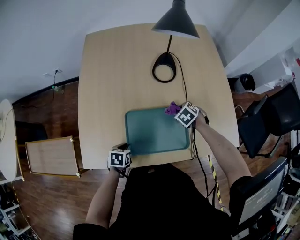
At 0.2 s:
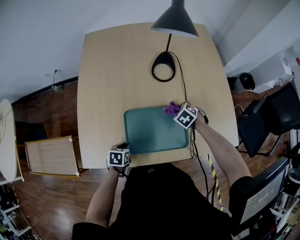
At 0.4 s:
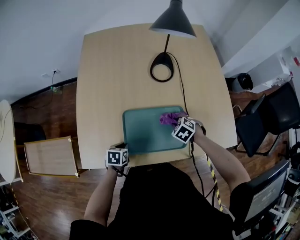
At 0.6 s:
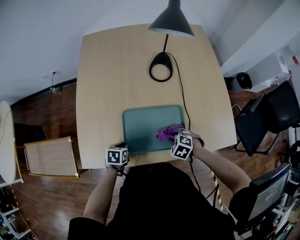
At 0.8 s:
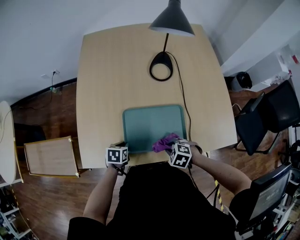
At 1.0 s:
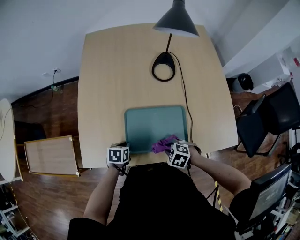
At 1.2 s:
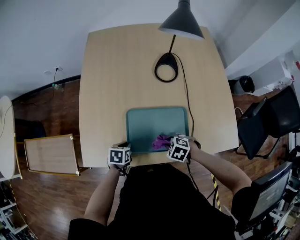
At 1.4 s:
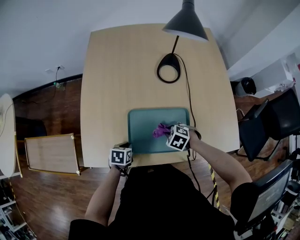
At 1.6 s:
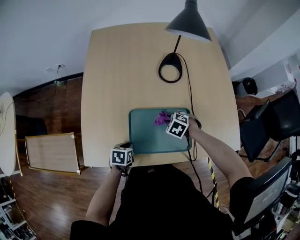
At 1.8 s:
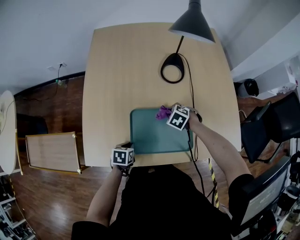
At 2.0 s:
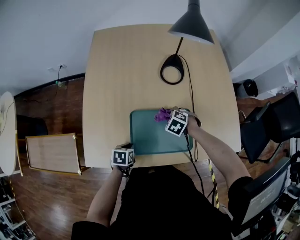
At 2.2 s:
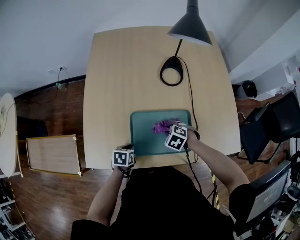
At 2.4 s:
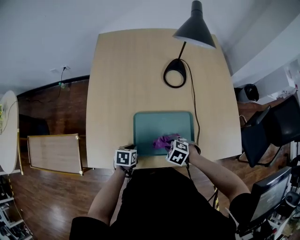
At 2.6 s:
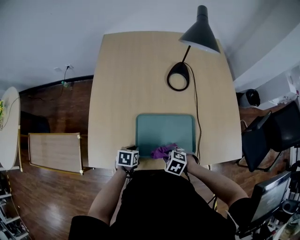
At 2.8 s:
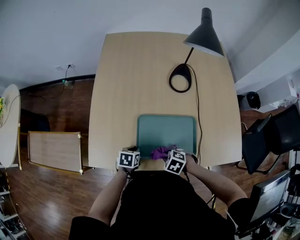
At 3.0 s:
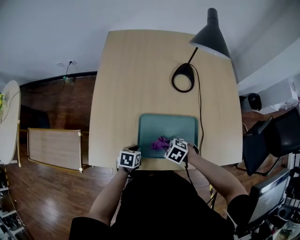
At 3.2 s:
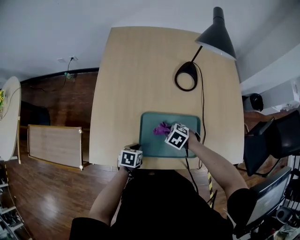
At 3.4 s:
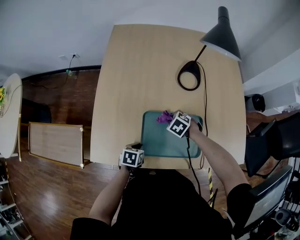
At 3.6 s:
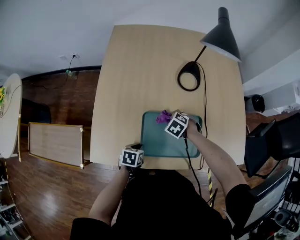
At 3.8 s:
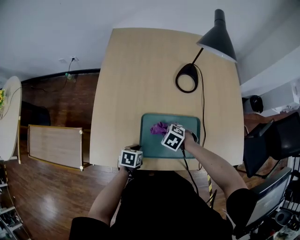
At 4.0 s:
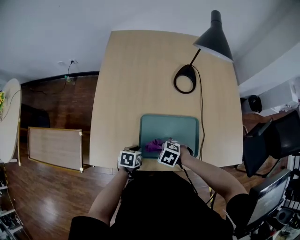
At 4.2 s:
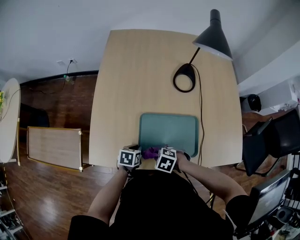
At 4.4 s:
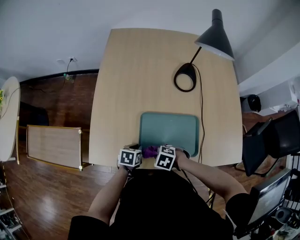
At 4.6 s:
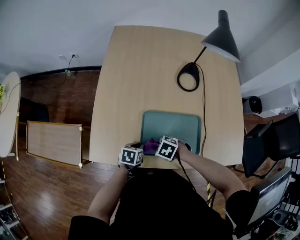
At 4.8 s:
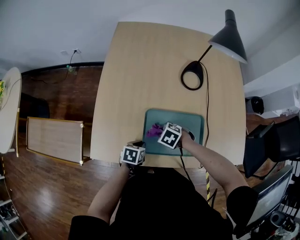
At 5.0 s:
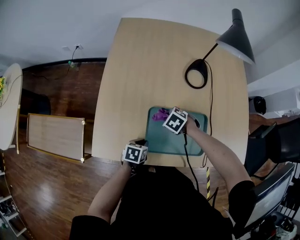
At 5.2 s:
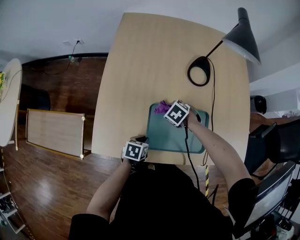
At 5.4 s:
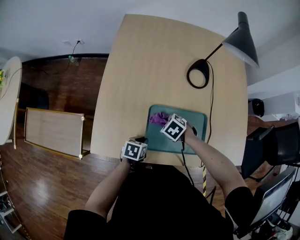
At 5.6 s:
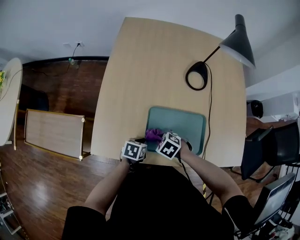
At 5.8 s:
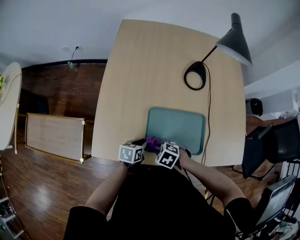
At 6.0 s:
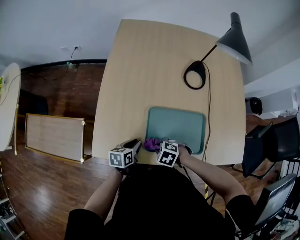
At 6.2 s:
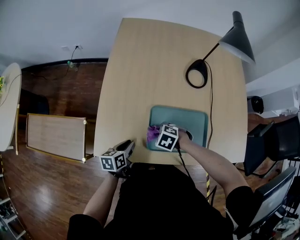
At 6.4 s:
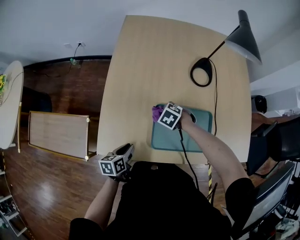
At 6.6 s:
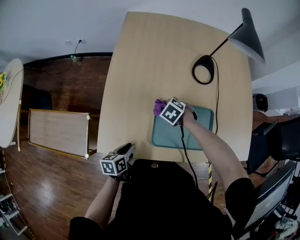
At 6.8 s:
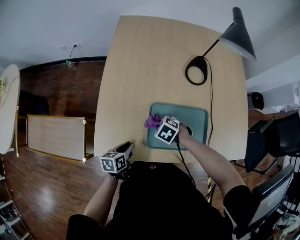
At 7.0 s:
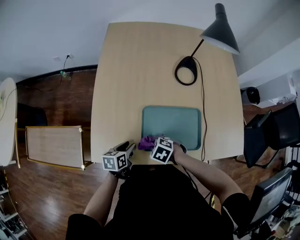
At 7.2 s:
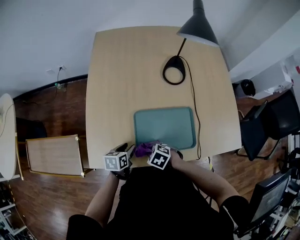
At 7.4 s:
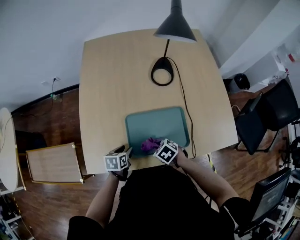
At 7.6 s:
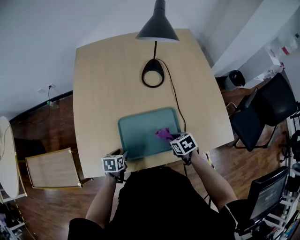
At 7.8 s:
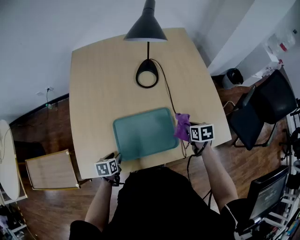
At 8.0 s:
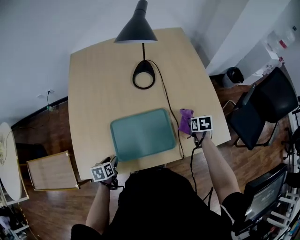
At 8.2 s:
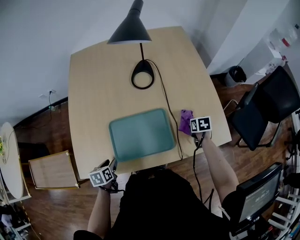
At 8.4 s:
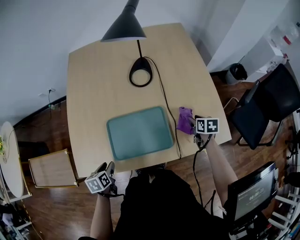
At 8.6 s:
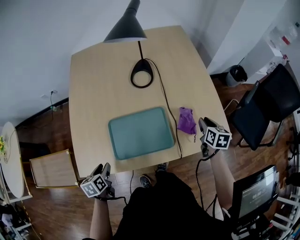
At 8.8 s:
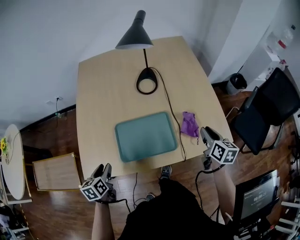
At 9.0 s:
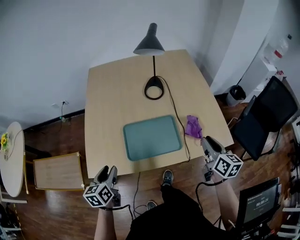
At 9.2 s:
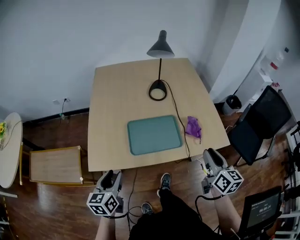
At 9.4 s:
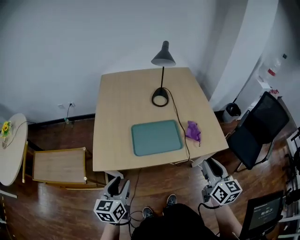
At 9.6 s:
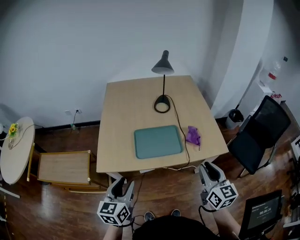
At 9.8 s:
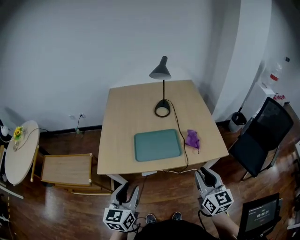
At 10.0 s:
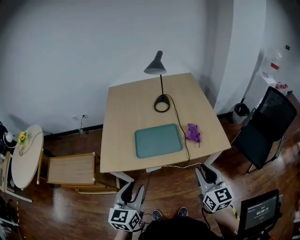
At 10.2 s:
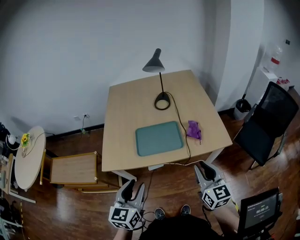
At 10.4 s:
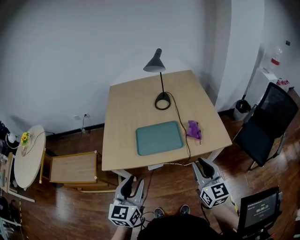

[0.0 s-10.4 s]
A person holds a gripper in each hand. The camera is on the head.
0.0 to 1.4 s: The right gripper changes its angle by about 20 degrees.
4.4 to 6.0 s: The left gripper moves some 5 cm.
6.0 to 7.4 s: The left gripper opens up. Meanwhile the right gripper rotates some 30 degrees.
7.4 to 9.0 s: The left gripper goes some 20 cm upward and backward, and rotates approximately 30 degrees. Meanwhile the right gripper travels to the right and upward by some 35 cm, and tilts its fingers about 50 degrees upward.
9.0 to 10.4 s: The left gripper is displaced upward, backward and to the right by approximately 25 cm, and changes its angle by some 30 degrees. Meanwhile the right gripper shifts approximately 20 cm backward and upward, and turns by approximately 30 degrees.

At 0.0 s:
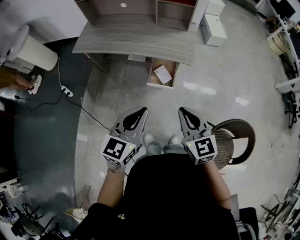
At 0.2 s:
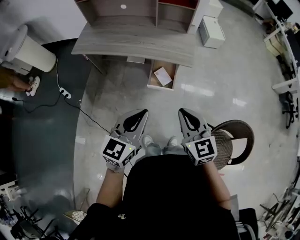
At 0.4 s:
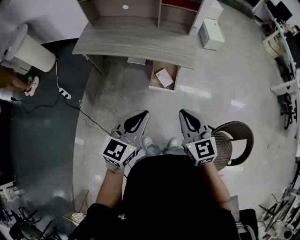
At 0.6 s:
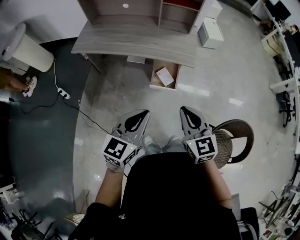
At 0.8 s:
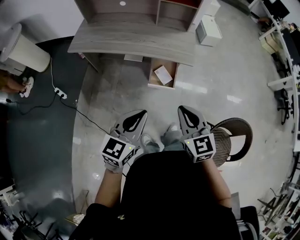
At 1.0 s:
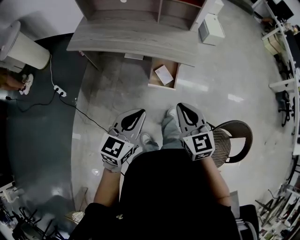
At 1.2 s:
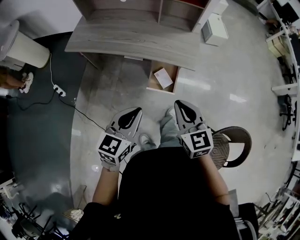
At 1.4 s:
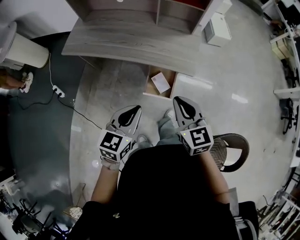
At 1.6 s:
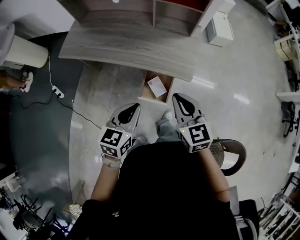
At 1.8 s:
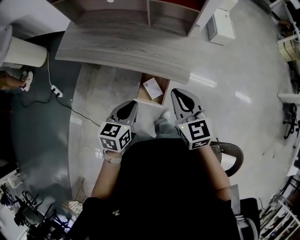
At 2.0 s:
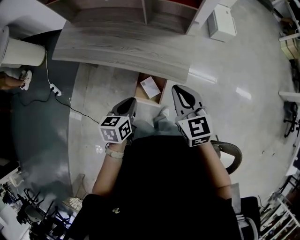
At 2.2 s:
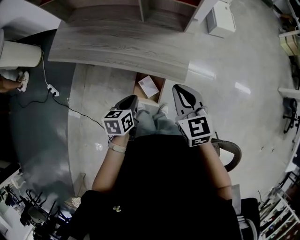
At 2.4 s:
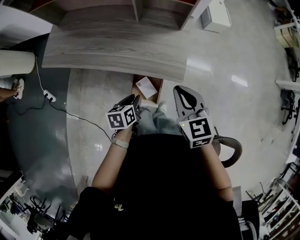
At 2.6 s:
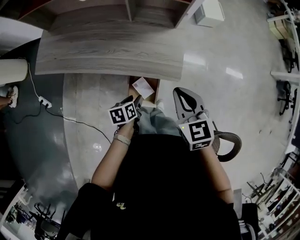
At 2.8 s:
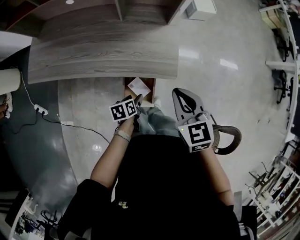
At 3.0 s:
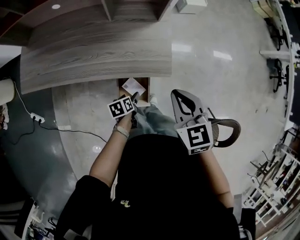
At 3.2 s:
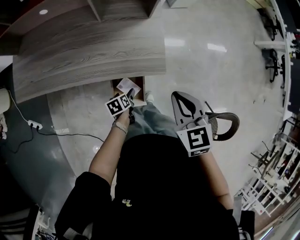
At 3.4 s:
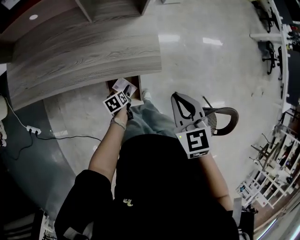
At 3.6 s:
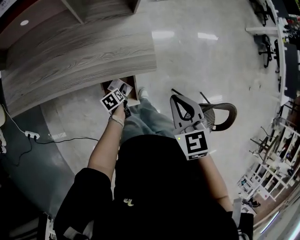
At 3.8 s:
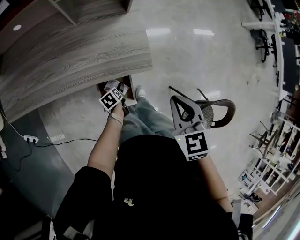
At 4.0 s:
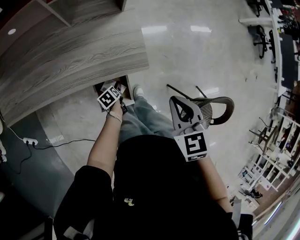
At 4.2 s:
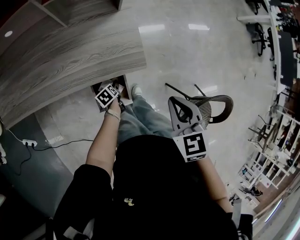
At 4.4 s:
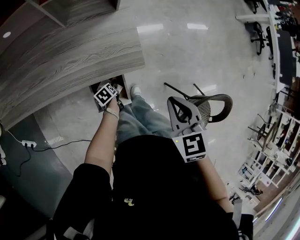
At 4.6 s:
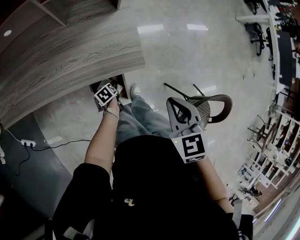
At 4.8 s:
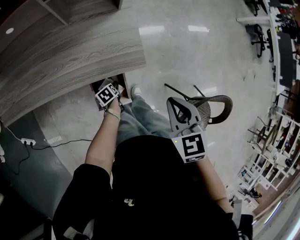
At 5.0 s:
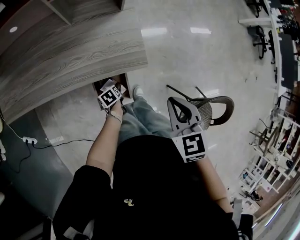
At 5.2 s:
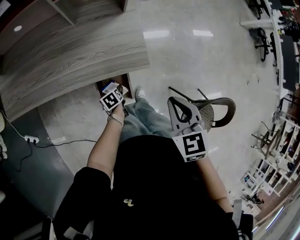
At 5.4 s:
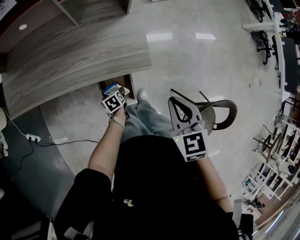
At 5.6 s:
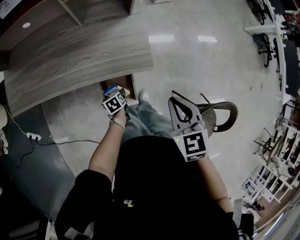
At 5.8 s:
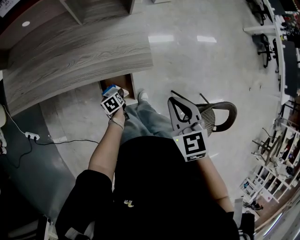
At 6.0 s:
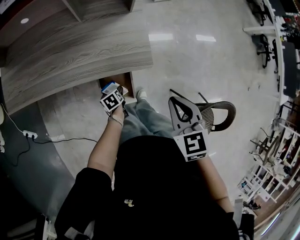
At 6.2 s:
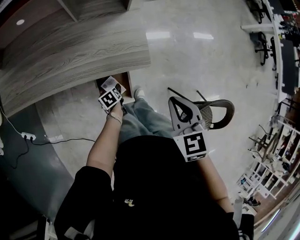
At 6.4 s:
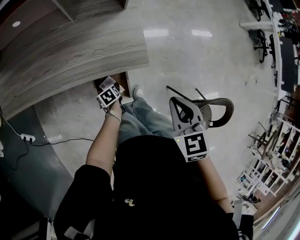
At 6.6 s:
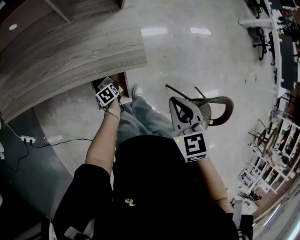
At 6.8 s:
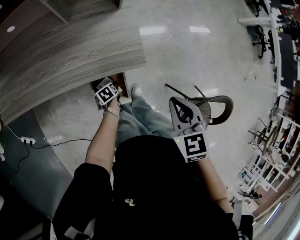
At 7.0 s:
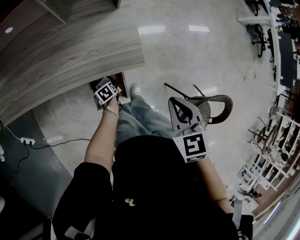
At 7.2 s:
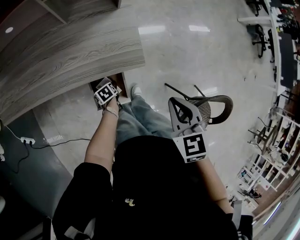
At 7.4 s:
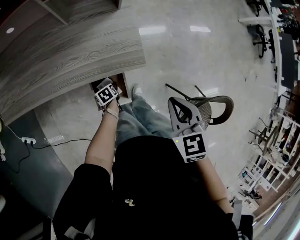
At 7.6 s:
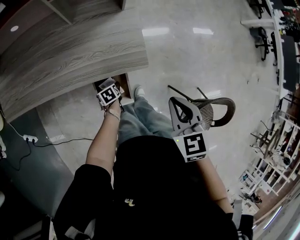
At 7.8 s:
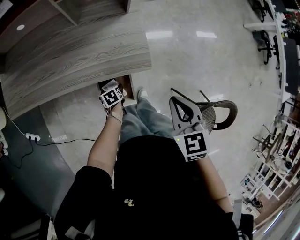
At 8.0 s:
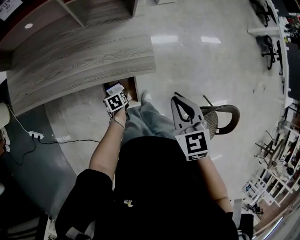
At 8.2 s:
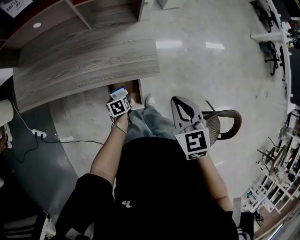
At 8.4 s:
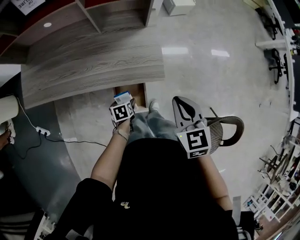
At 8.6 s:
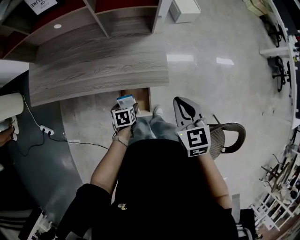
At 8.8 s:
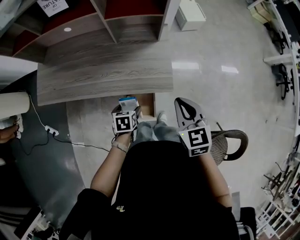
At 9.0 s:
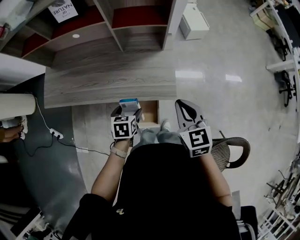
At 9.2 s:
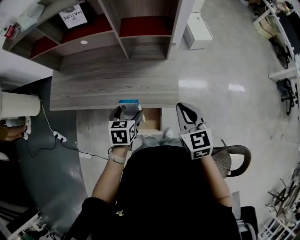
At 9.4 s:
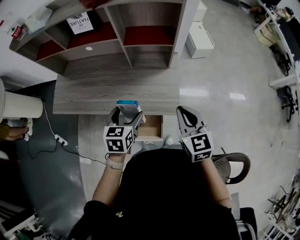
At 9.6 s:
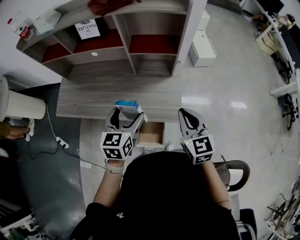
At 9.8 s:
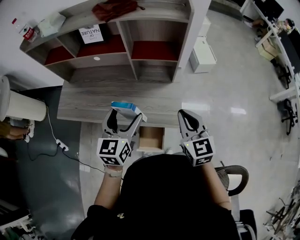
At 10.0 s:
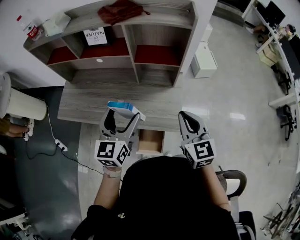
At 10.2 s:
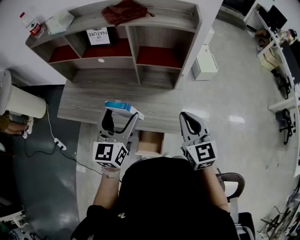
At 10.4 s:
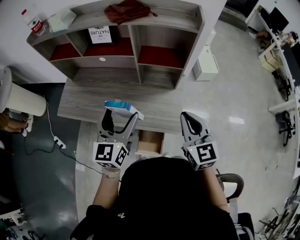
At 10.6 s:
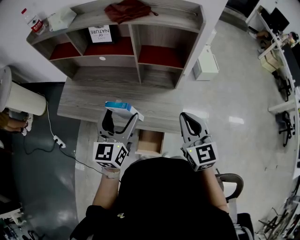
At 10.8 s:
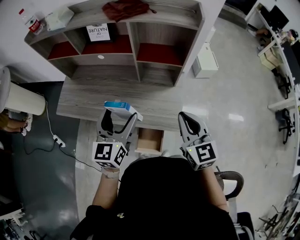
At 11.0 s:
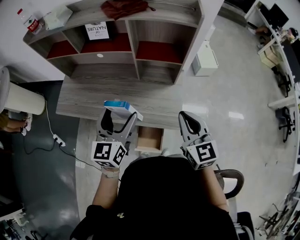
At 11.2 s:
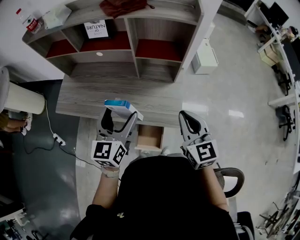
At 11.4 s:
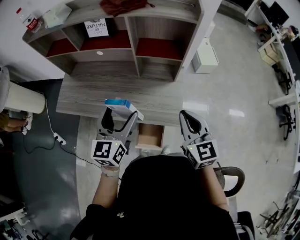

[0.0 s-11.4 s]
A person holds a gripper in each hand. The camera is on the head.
0.0 to 1.4 s: The right gripper moves forward, some 15 cm. The left gripper heads forward and downward, covering approximately 15 cm.
1.4 to 2.8 s: The right gripper moves forward and to the right, roughly 20 cm, while the left gripper heads downward and forward, covering some 35 cm, changes its angle by about 50 degrees, and opens up.
2.8 to 4.2 s: The right gripper shifts about 10 cm to the right, and turns by approximately 20 degrees. Meanwhile the left gripper moves downward, some 15 cm, and opens its fingers.
4.2 to 5.6 s: The left gripper changes place by roughly 5 cm.
5.6 to 7.2 s: The left gripper shifts about 5 cm downward.
7.2 to 8.6 s: The left gripper shifts about 20 cm upward. Meanwhile the right gripper changes place by about 5 cm.
8.6 to 10.0 s: The left gripper shifts approximately 40 cm upward, and points its fingers roughly 60 degrees further upward. Meanwhile the right gripper shifts about 15 cm upward and forward, and swivels roughly 20 degrees.
10.0 to 11.4 s: The grippers stay close to where they were, moving slightly.

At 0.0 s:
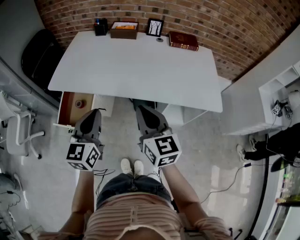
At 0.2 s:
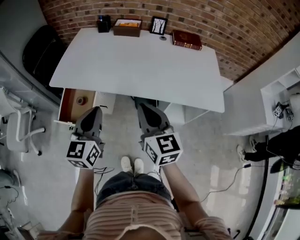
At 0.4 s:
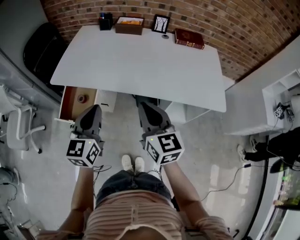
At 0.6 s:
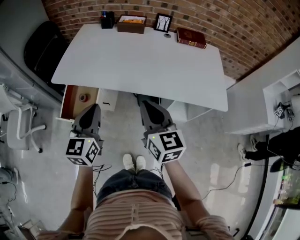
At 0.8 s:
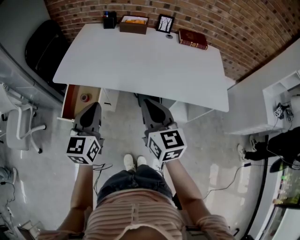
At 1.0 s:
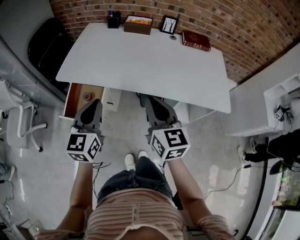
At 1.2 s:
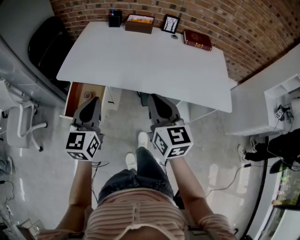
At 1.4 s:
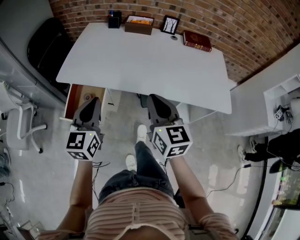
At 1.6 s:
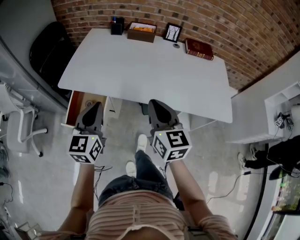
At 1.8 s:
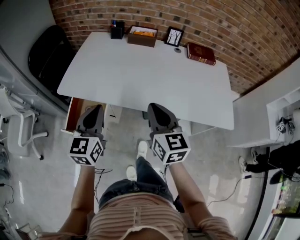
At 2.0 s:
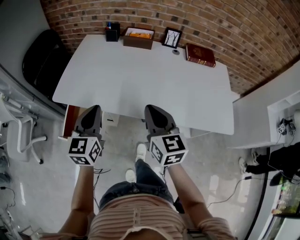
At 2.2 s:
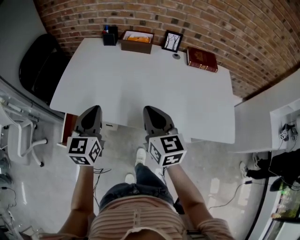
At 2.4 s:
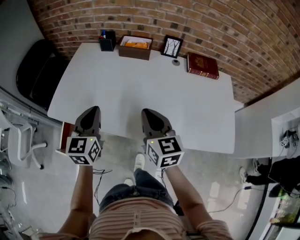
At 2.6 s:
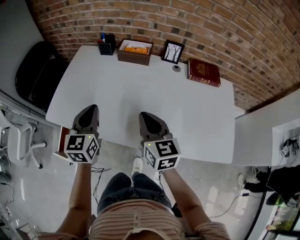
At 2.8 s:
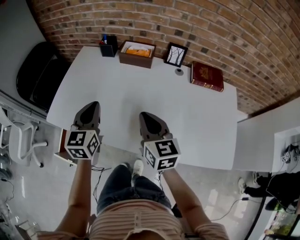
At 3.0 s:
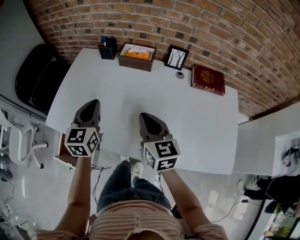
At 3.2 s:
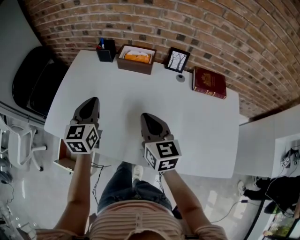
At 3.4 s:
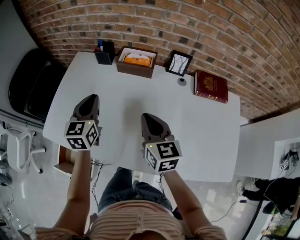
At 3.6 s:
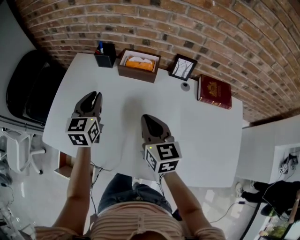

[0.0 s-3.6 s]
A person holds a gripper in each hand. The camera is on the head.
0.0 to 1.8 s: The grippers both shift forward and to the left by roughly 15 cm.
1.8 to 3.6 s: The grippers both shift forward by about 40 cm.
